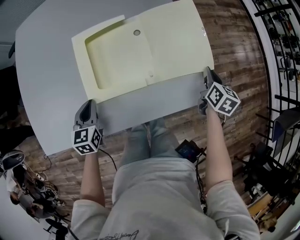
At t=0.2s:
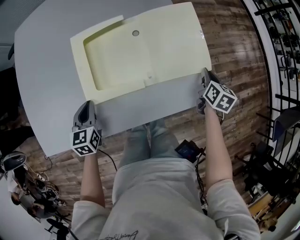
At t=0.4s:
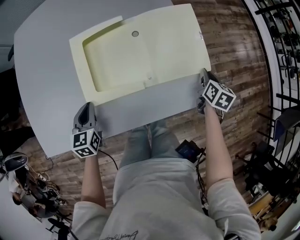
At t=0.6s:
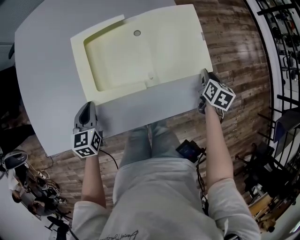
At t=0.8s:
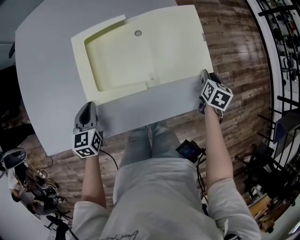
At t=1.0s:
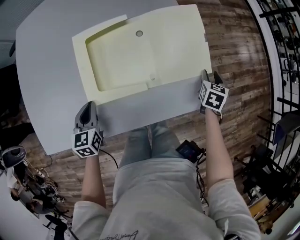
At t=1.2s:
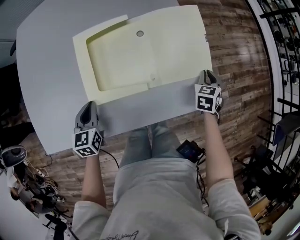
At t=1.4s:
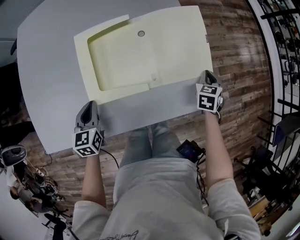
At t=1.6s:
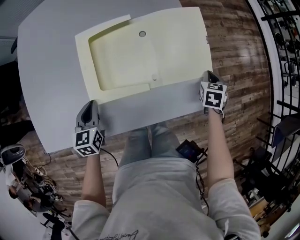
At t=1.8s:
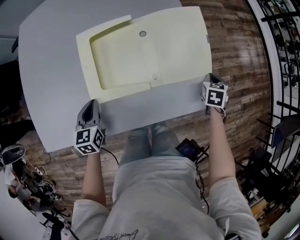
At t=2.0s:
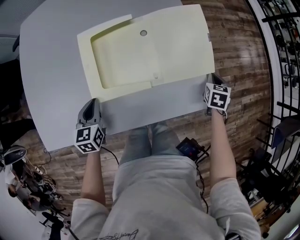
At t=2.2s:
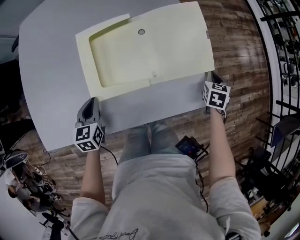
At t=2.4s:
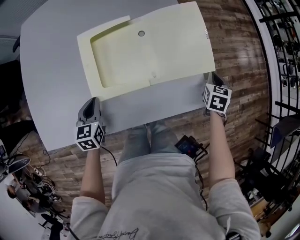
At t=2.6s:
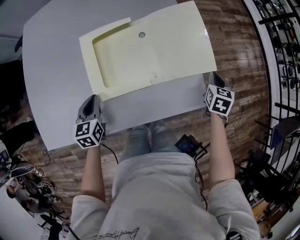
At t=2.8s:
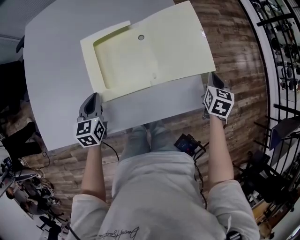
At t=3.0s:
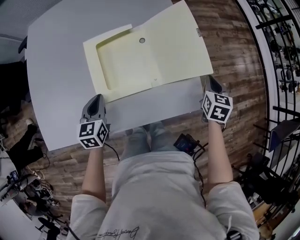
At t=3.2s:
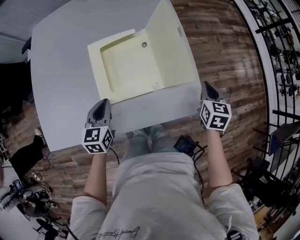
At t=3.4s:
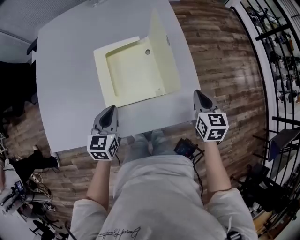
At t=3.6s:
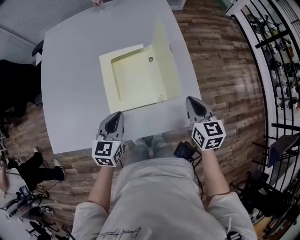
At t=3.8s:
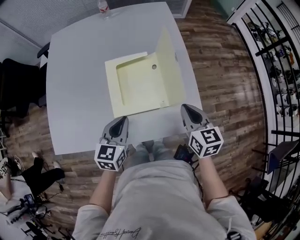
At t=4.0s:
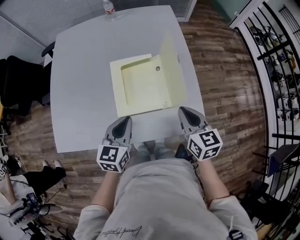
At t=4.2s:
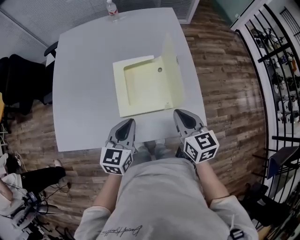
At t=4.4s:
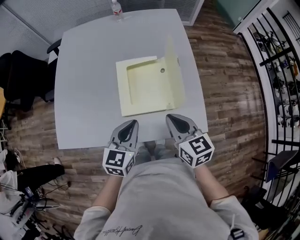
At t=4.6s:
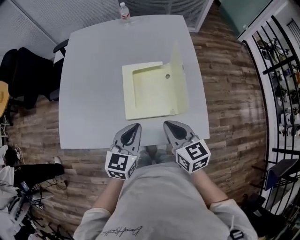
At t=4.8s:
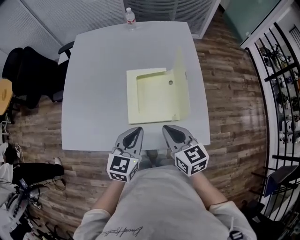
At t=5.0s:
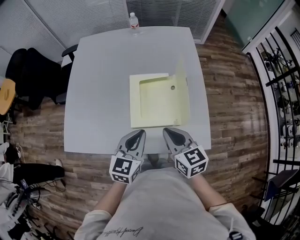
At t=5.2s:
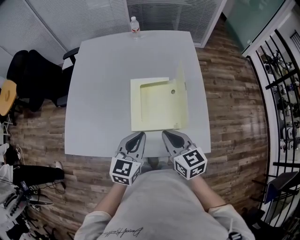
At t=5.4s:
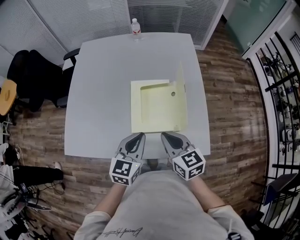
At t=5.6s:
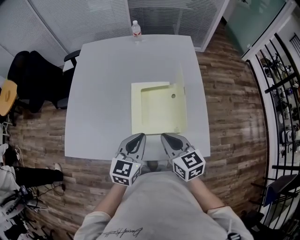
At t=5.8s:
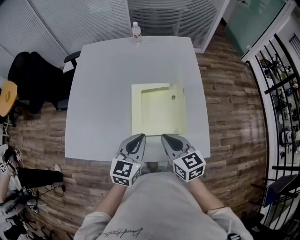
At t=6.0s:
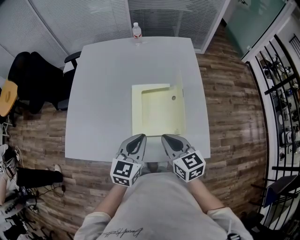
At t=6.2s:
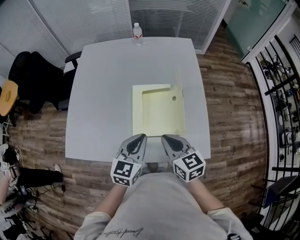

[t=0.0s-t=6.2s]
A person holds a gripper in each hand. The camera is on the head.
t=0.0s to t=1.6s: The right gripper shifts some 5 cm downward, swivels roughly 30 degrees, and opens and closes again.
t=1.6s to t=3.2s: The right gripper is displaced upward by about 15 cm; the left gripper is displaced upward and to the right by some 10 cm.
t=3.2s to t=4.6s: The left gripper moves upward, roughly 10 cm. Meanwhile the right gripper shifts some 25 cm to the left and upward, and rotates approximately 40 degrees.
t=4.6s to t=6.2s: The grippers move only a little.

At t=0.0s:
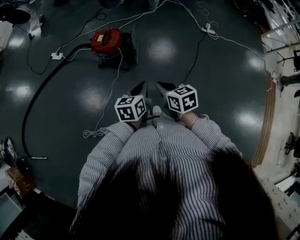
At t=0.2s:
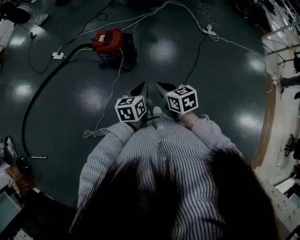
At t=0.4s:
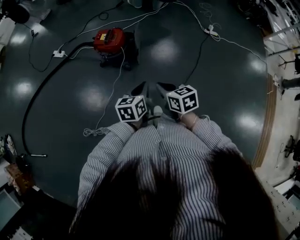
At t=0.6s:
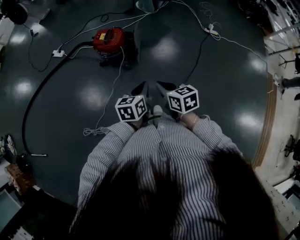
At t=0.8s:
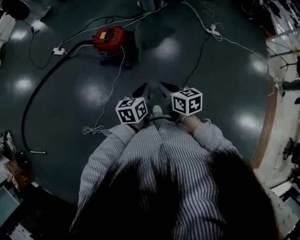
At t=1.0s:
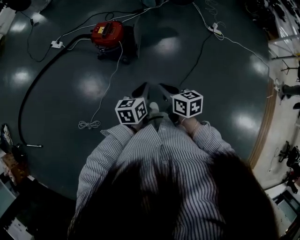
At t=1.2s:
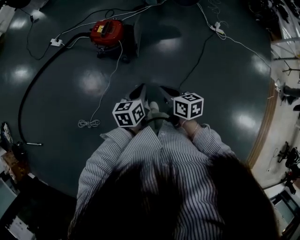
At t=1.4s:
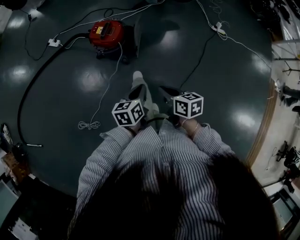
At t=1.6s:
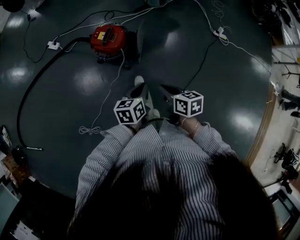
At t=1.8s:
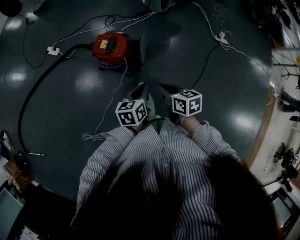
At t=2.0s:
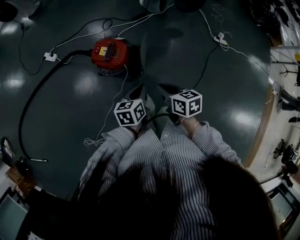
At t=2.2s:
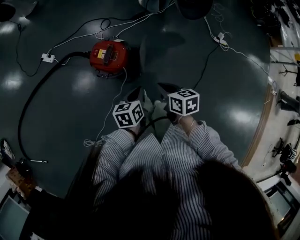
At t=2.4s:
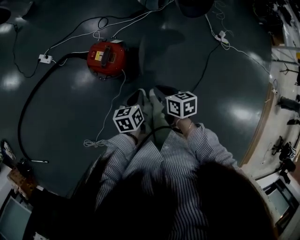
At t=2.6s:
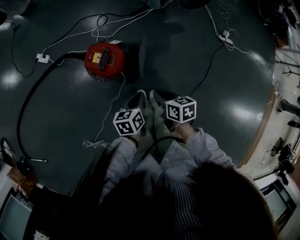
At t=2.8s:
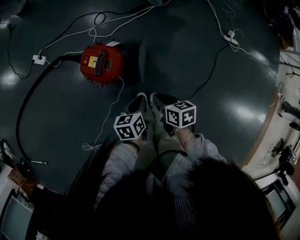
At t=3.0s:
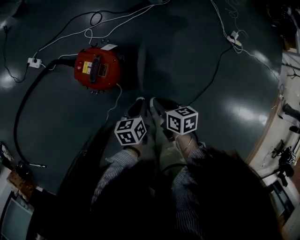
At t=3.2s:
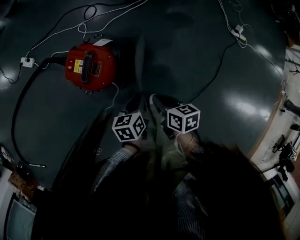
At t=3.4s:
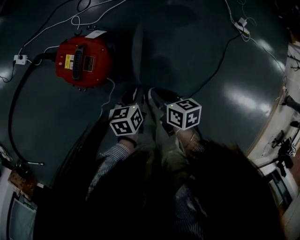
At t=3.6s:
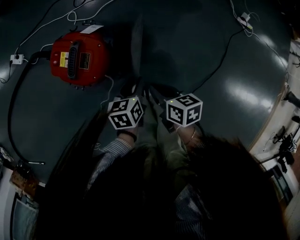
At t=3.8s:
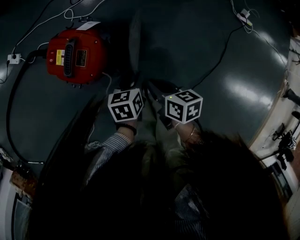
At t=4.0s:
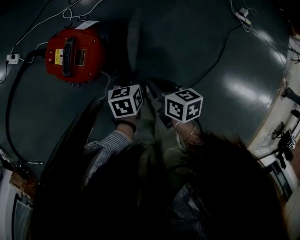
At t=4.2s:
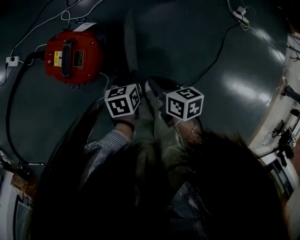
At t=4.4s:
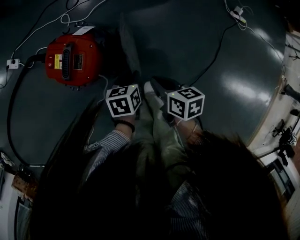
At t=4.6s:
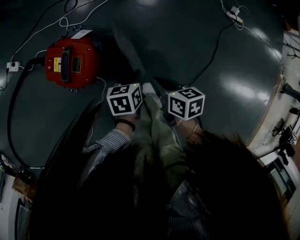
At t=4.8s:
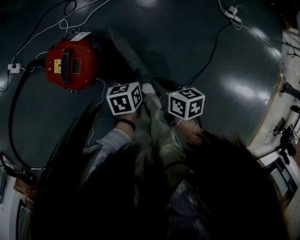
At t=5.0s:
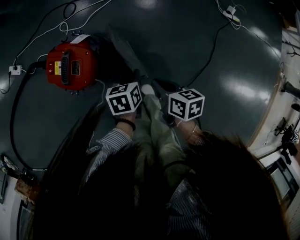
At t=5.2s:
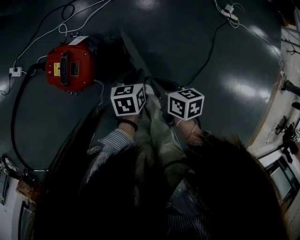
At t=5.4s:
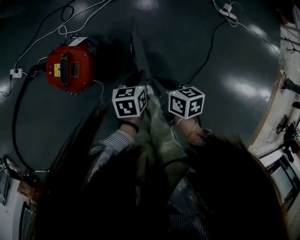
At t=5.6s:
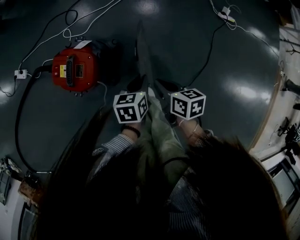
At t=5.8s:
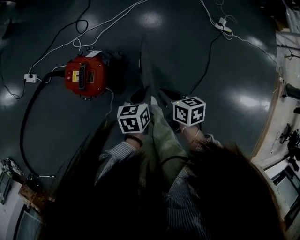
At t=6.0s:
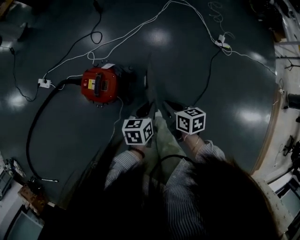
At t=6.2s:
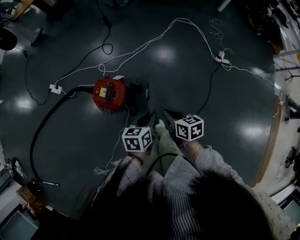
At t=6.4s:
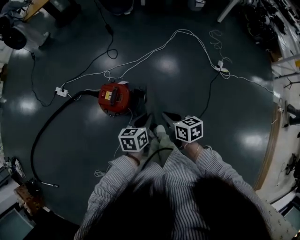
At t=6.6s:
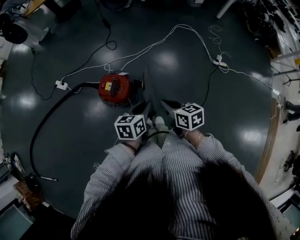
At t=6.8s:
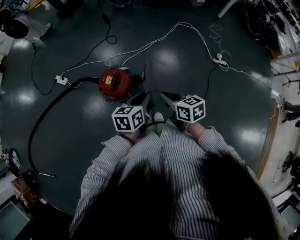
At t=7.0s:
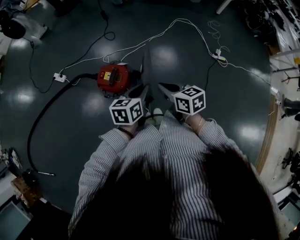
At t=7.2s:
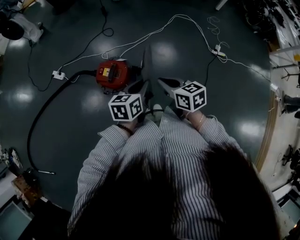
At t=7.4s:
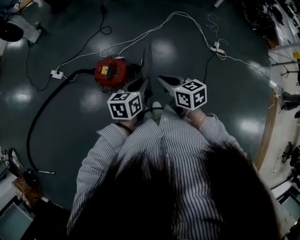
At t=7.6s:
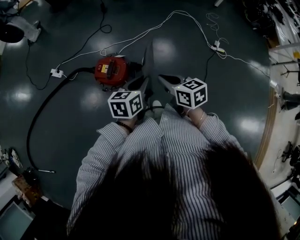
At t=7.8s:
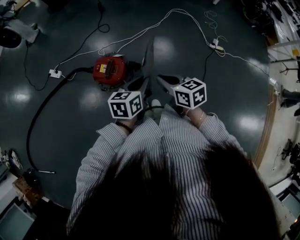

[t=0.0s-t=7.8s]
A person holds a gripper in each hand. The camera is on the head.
t=0.0s to t=1.6s: Both grippers move forward and downward, roughly 15 cm.
t=1.6s to t=3.2s: The grippers both shift downward and forward by approximately 35 cm.
t=3.2s to t=4.6s: The right gripper ends up some 5 cm from where it was. The left gripper travels downward by approximately 5 cm, and opens, then closes again.
t=4.6s to t=6.2s: Both grippers travel together upward, approximately 25 cm.
t=6.2s to t=7.8s: Both grippers move upward, approximately 10 cm.

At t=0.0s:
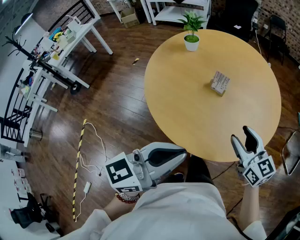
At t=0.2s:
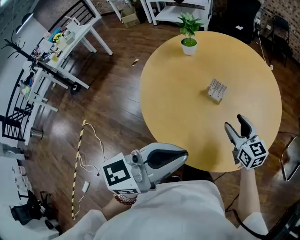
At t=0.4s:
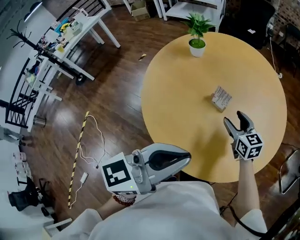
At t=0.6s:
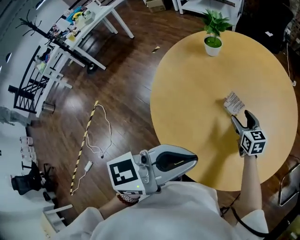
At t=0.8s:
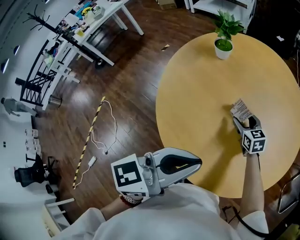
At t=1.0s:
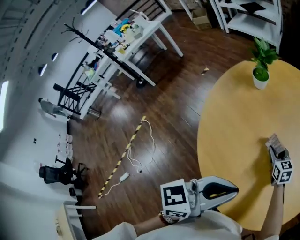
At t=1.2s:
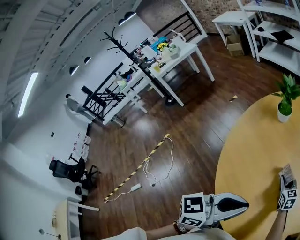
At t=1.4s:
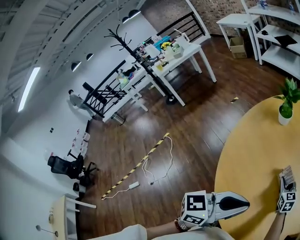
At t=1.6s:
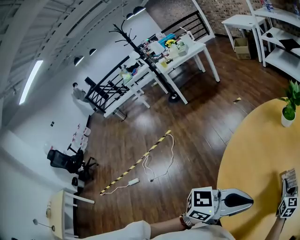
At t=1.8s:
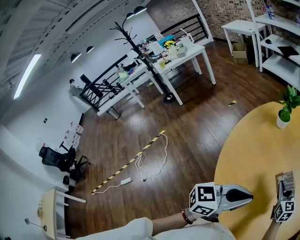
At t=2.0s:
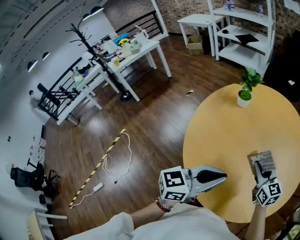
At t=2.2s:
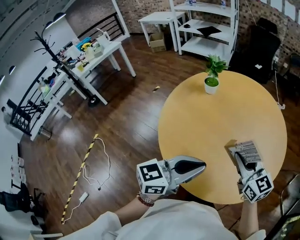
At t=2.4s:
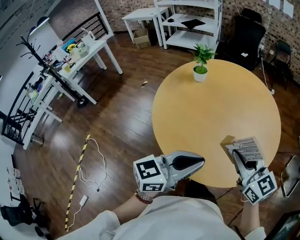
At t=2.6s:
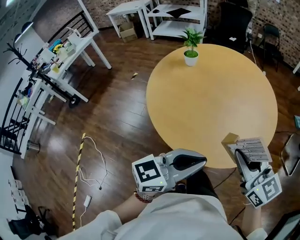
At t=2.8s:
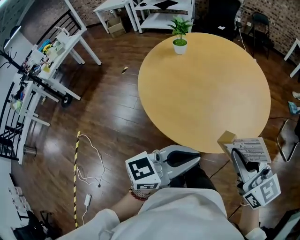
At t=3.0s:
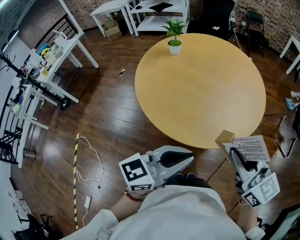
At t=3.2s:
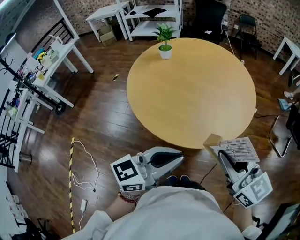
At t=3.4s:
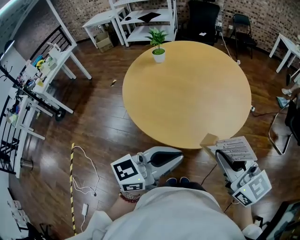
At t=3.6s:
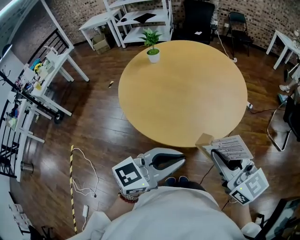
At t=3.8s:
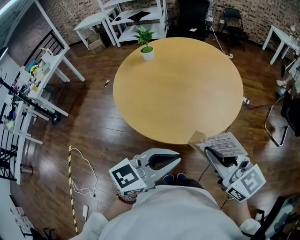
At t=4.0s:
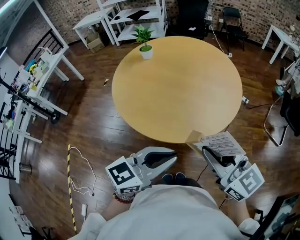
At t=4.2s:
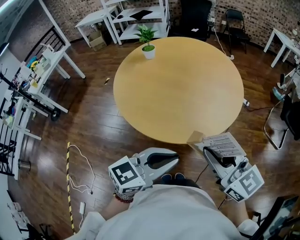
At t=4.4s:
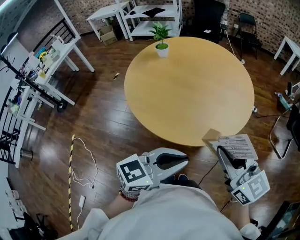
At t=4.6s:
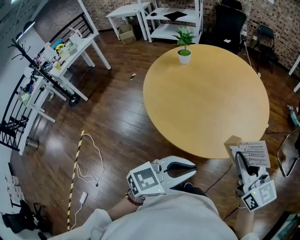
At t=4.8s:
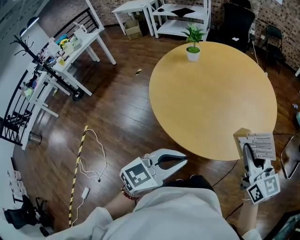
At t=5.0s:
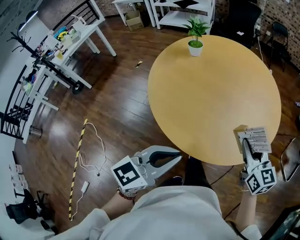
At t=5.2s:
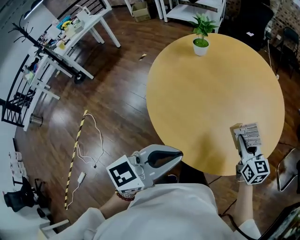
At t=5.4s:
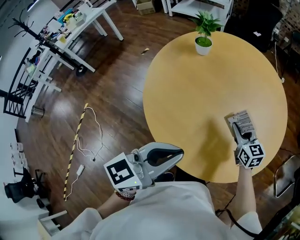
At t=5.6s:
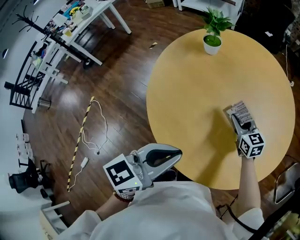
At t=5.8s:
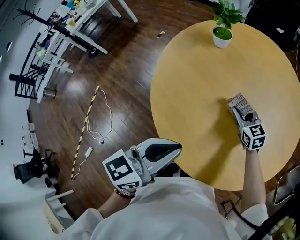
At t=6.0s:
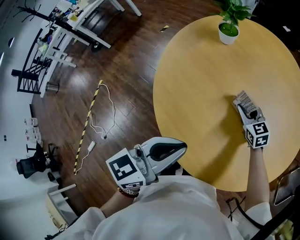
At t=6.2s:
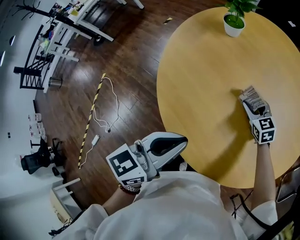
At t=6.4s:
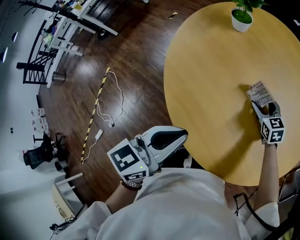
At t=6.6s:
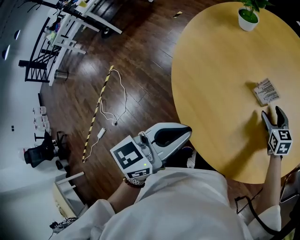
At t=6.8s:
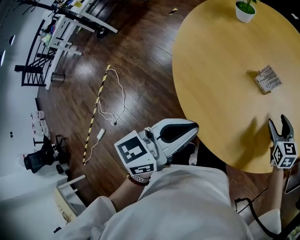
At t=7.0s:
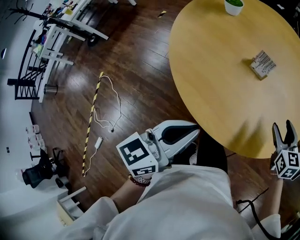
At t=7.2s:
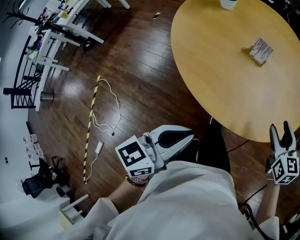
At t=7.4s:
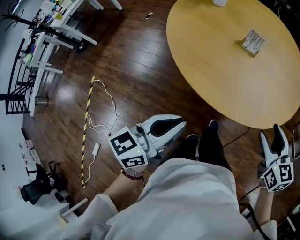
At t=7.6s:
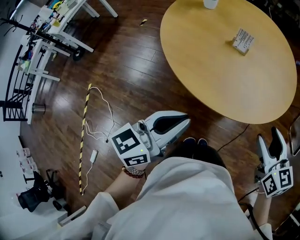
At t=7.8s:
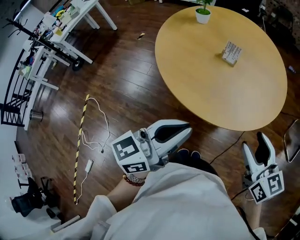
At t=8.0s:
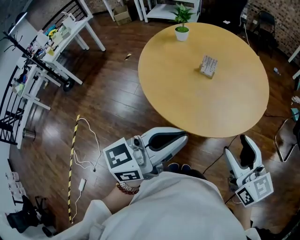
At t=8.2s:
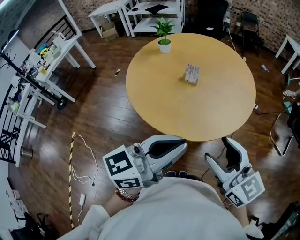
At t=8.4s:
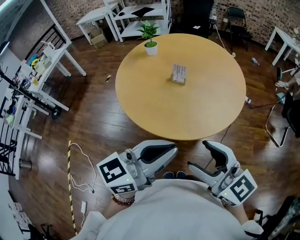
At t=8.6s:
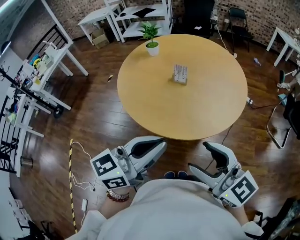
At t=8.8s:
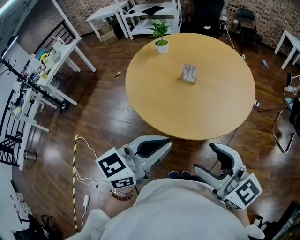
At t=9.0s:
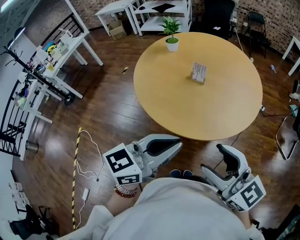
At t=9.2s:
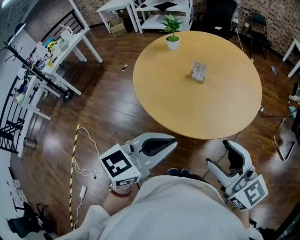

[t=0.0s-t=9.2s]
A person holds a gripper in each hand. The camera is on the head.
t=0.0s to t=1.6s: The left gripper is displaced forward and to the right by some 20 cm. The right gripper goes some 35 cm forward and downward.
t=1.6s to t=3.0s: The left gripper is displaced backward by roughly 25 cm, and changes its angle by roughly 30 degrees. Meanwhile the right gripper heads backward and upward, covering roughly 50 cm, and swivels about 20 degrees.
t=3.0s to t=4.6s: The grippers both shift to the right by about 5 cm.
t=4.6s to t=6.2s: The left gripper shifts by roughly 35 cm, and rotates approximately 40 degrees, while the right gripper changes place by approximately 60 cm, and points its fingers some 30 degrees further downward.
t=6.2s to t=7.6s: The right gripper travels backward and upward by approximately 50 cm, and turns by roughly 30 degrees. The left gripper shifts roughly 25 cm backward, and swivels approximately 20 degrees.
t=7.6s to t=9.2s: The right gripper is displaced upward and backward by about 20 cm, and swivels about 30 degrees. The left gripper shifts approximately 15 cm to the right and upward, and rotates roughly 20 degrees.
